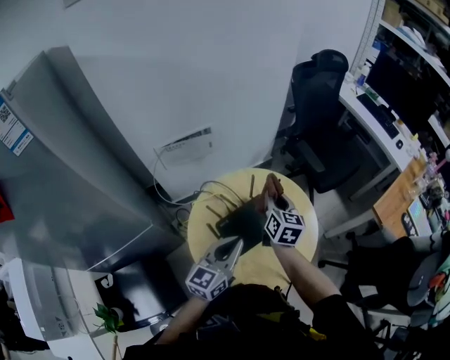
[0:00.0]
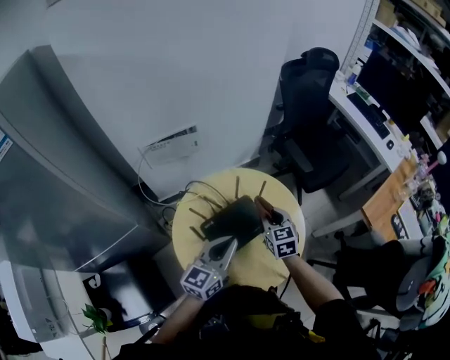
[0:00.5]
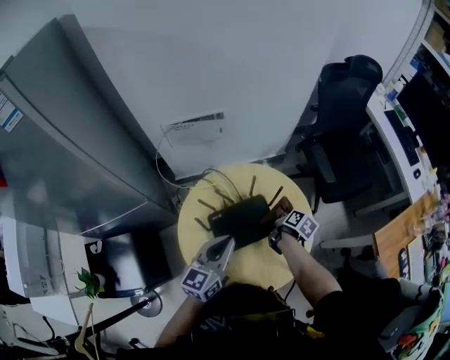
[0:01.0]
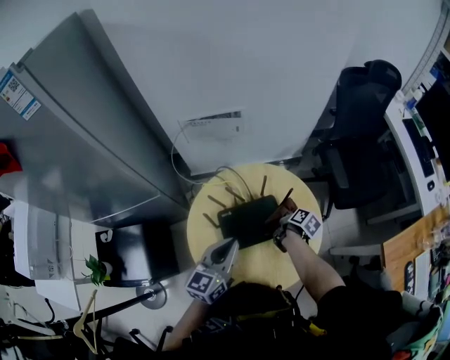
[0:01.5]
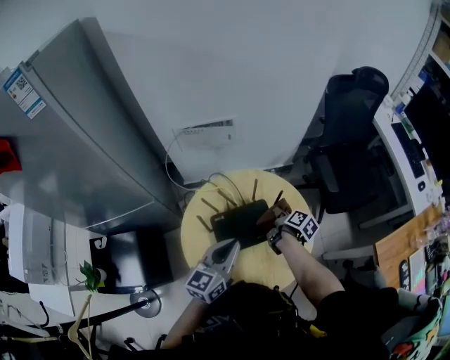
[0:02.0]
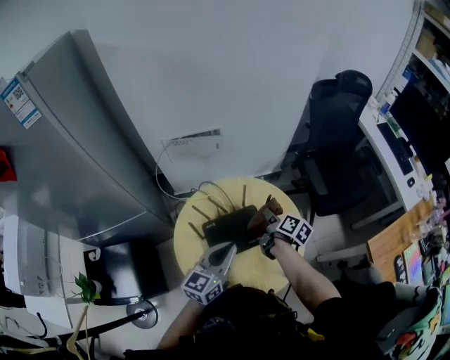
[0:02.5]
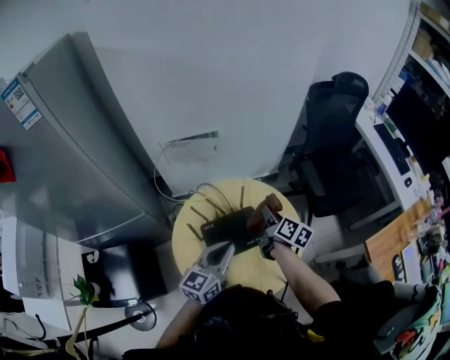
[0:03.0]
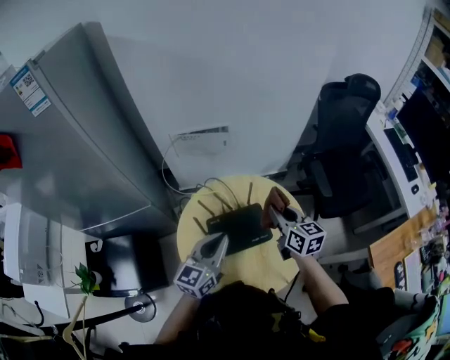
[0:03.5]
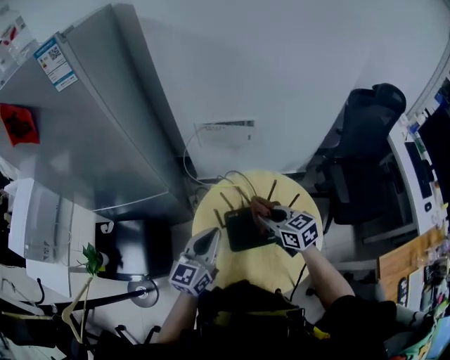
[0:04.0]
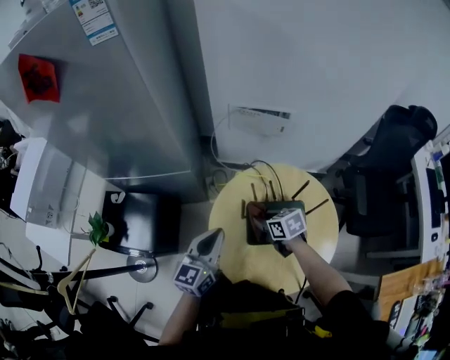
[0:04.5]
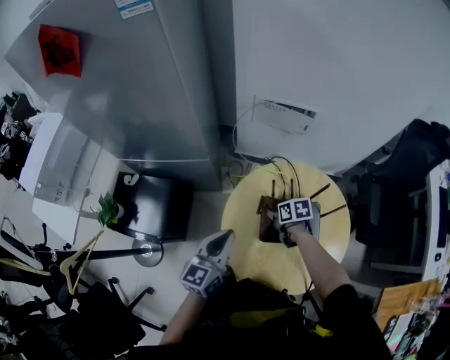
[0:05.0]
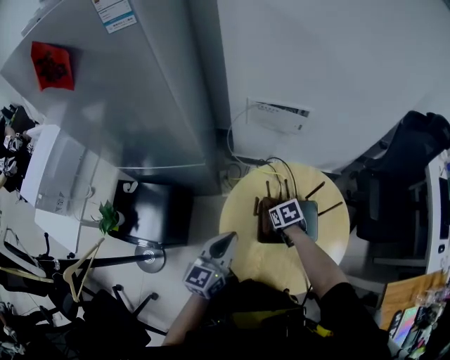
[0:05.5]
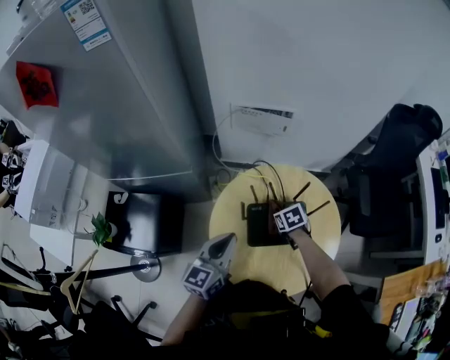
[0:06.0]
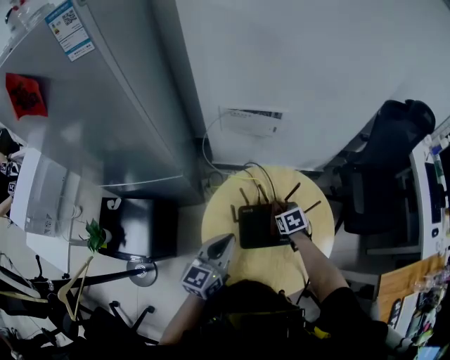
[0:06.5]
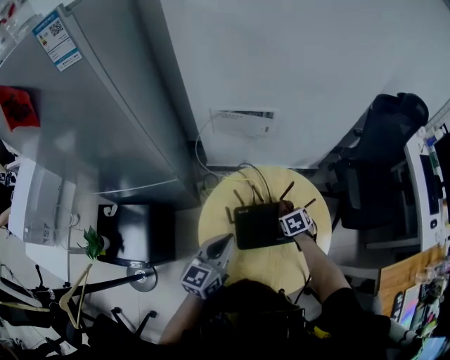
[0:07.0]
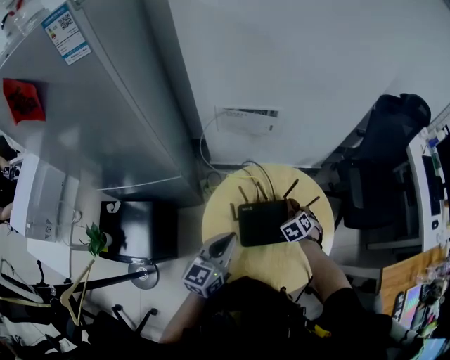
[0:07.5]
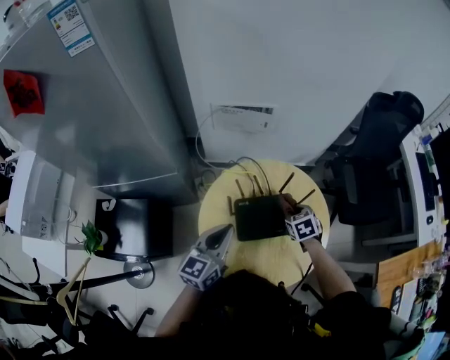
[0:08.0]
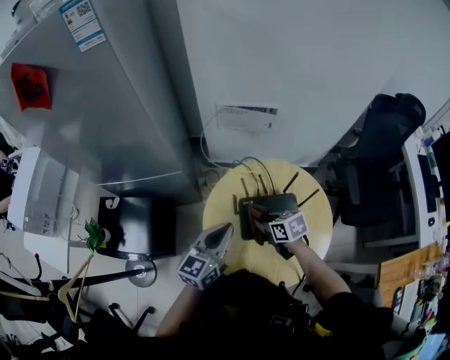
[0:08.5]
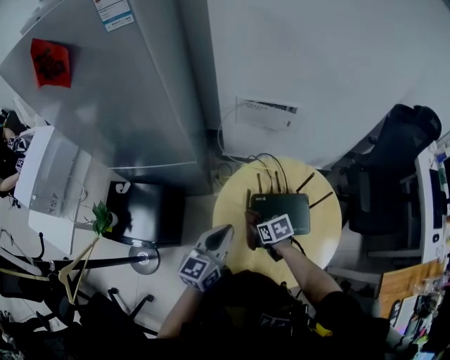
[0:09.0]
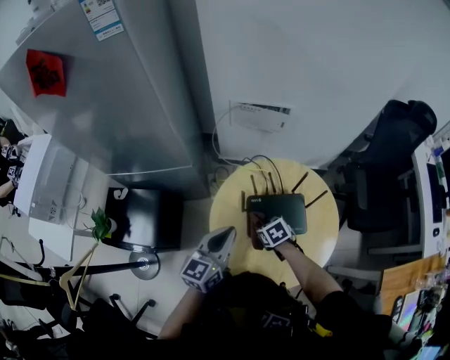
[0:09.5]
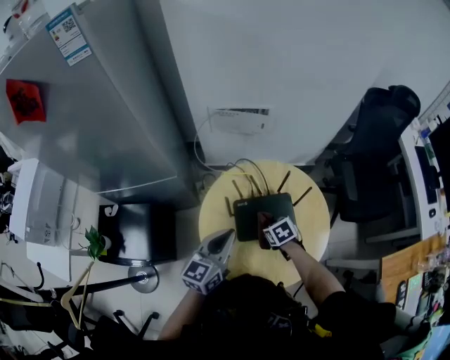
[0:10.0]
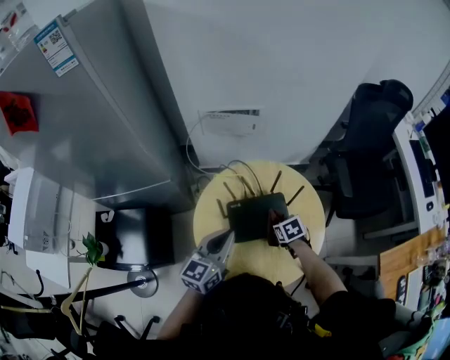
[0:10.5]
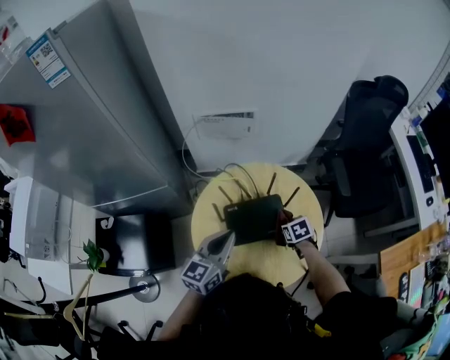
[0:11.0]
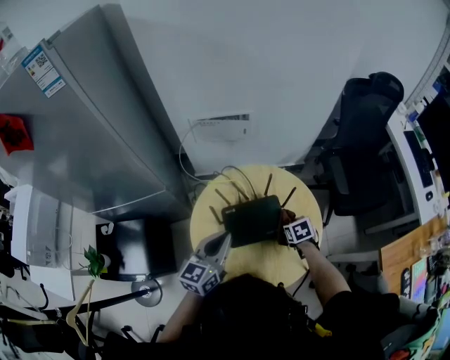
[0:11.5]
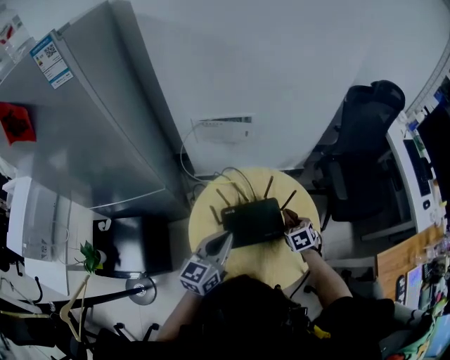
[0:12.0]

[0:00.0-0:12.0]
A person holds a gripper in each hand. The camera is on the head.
0:00.0 to 0:02.0: The right gripper travels downward by approximately 15 cm, and changes its angle by roughly 50 degrees.
0:02.0 to 0:04.0: The left gripper ends up approximately 10 cm from where it was. The right gripper shifts by approximately 20 cm, and twists about 70 degrees counterclockwise, seen from behind.
0:04.0 to 0:06.0: The right gripper moves downward, some 20 cm, and tilts its fingers roughly 40 degrees downward.
0:06.0 to 0:08.0: The right gripper ends up some 10 cm from where it was.
0:10.0 to 0:12.0: The right gripper shifts approximately 15 cm to the right, and changes its angle by about 20 degrees.

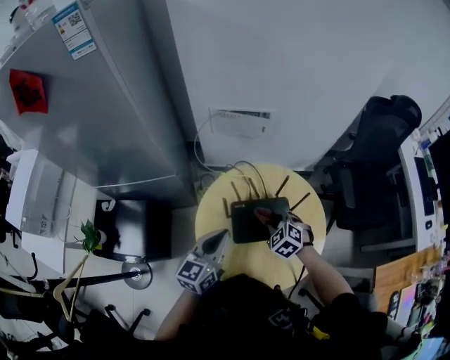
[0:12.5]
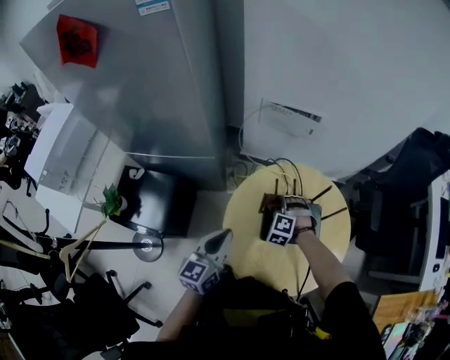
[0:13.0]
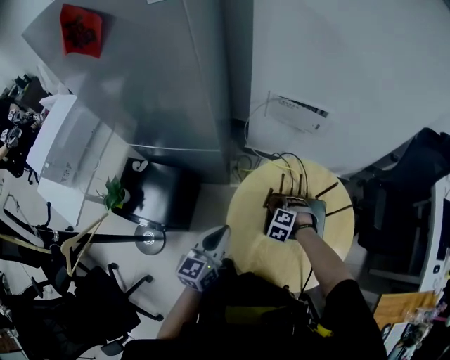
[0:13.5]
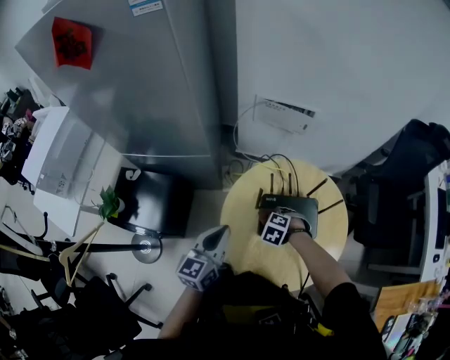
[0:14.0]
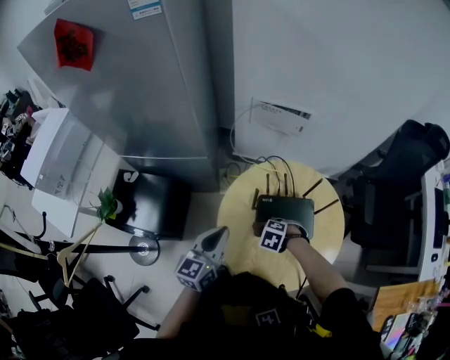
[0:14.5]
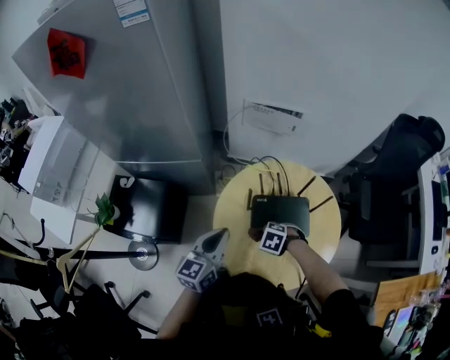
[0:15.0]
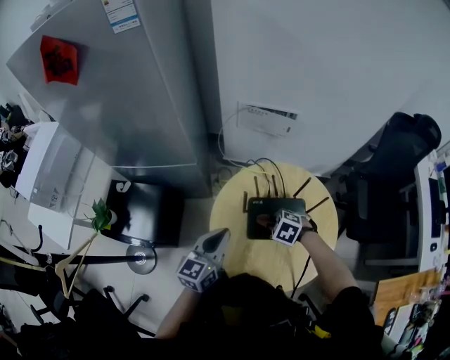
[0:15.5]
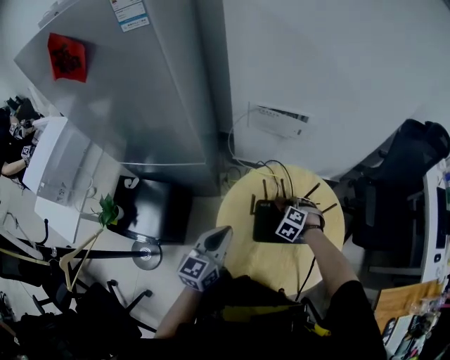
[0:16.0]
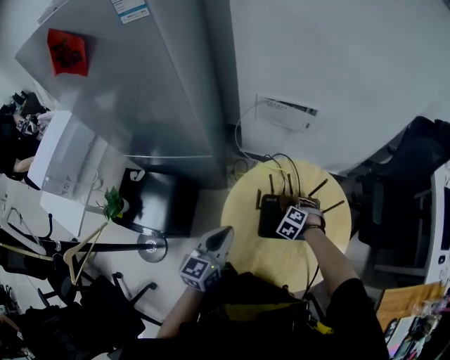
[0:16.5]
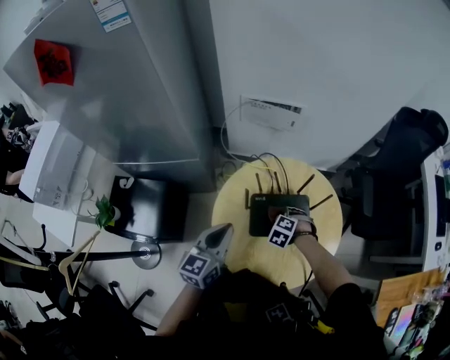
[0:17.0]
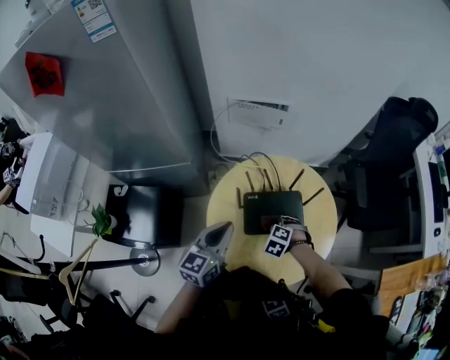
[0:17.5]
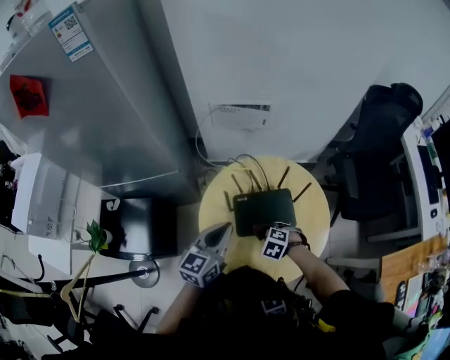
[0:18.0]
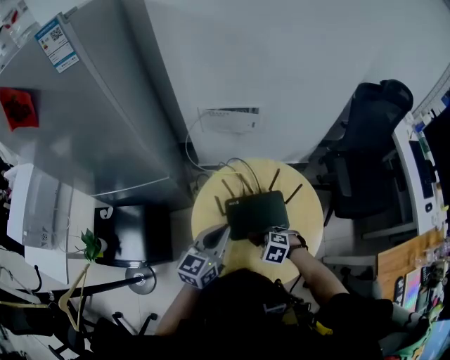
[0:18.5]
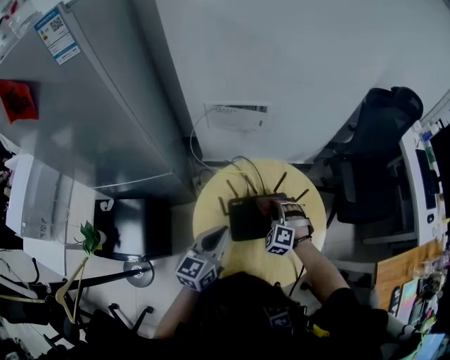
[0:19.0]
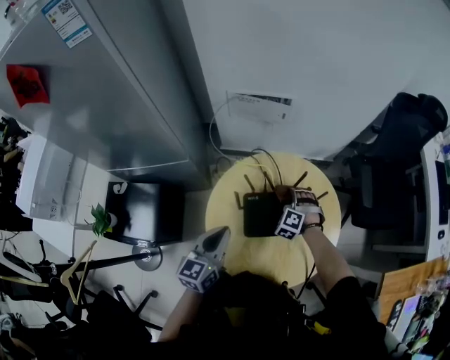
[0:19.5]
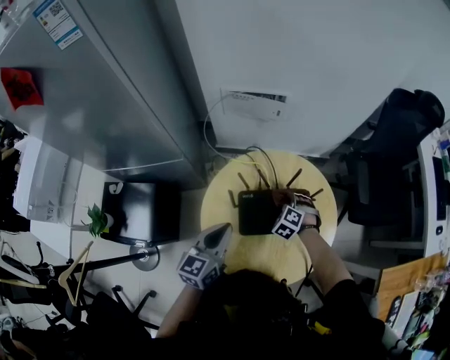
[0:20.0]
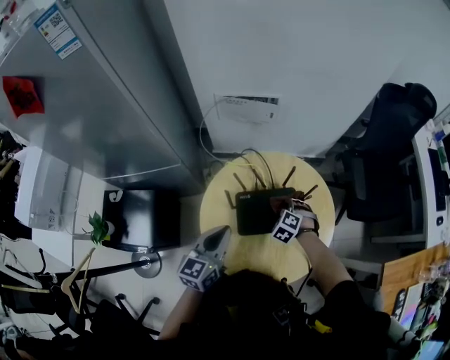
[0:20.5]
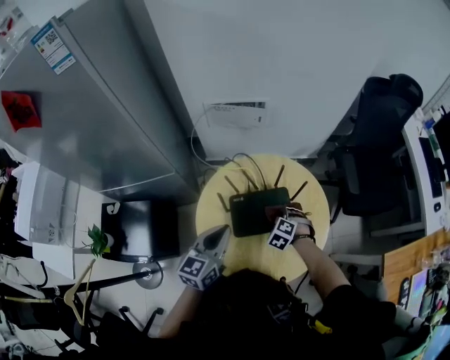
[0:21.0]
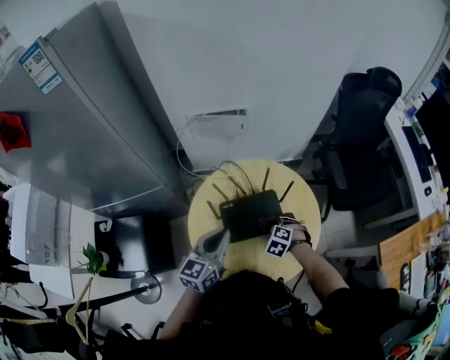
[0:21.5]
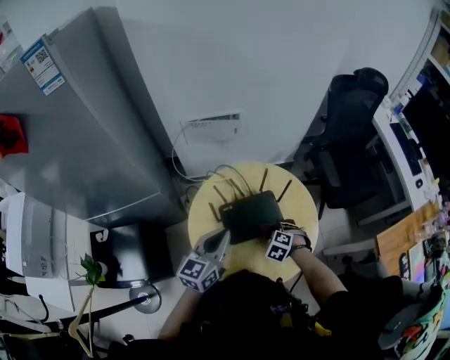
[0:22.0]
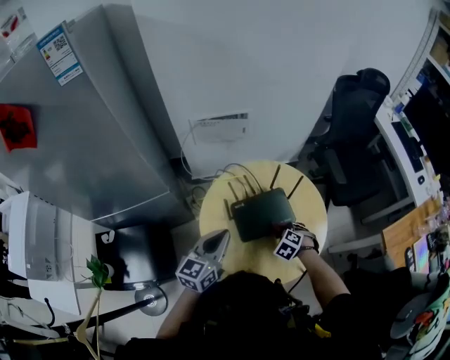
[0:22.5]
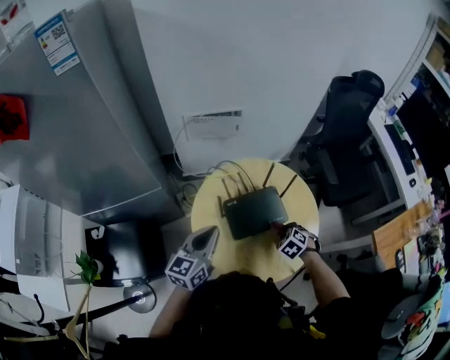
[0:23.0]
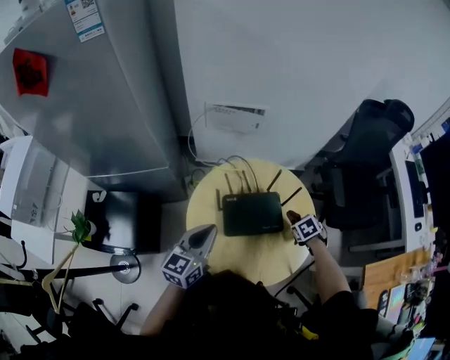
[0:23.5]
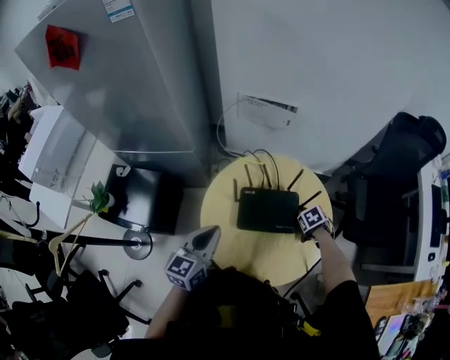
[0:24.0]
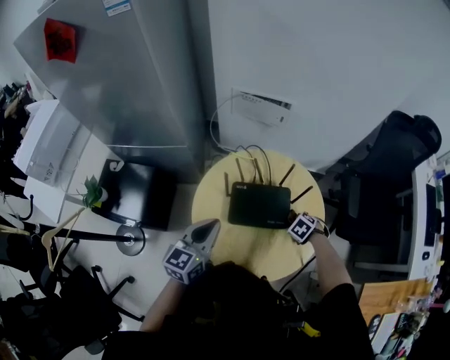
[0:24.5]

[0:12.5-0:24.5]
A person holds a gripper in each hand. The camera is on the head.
0:12.5 to 0:14.5: The left gripper ends up about 10 cm from where it was. The right gripper ends up approximately 15 cm from where it was, and angles its fingers downward, by about 30 degrees.
0:14.5 to 0:16.5: The right gripper shifts by roughly 15 cm, and rotates approximately 20 degrees.
0:16.5 to 0:18.5: The left gripper moves roughly 10 cm, while the right gripper ends up about 15 cm from where it was, and rotates about 20 degrees.
0:18.5 to 0:20.5: The right gripper shifts by some 15 cm, and swivels about 20 degrees.
0:20.5 to 0:22.5: The right gripper shifts roughly 10 cm backward and to the right.
0:22.5 to 0:24.5: The left gripper moves about 5 cm, and rotates approximately 20 degrees. Meanwhile the right gripper moves roughly 10 cm, and rotates about 20 degrees.

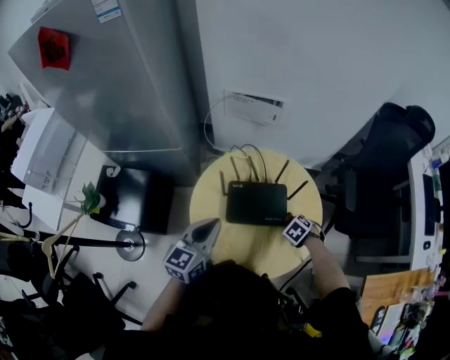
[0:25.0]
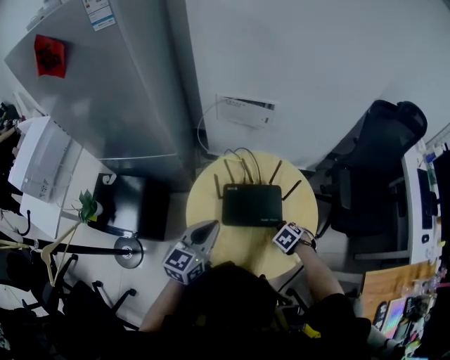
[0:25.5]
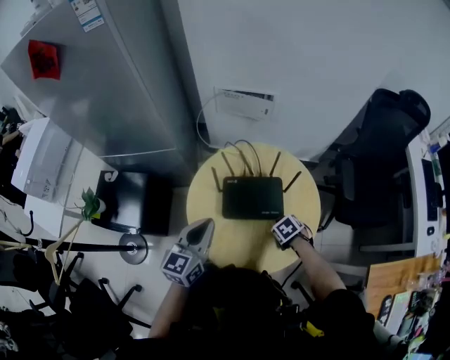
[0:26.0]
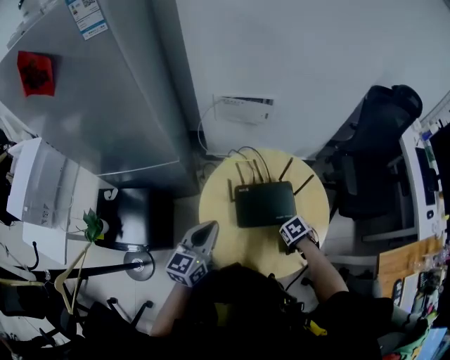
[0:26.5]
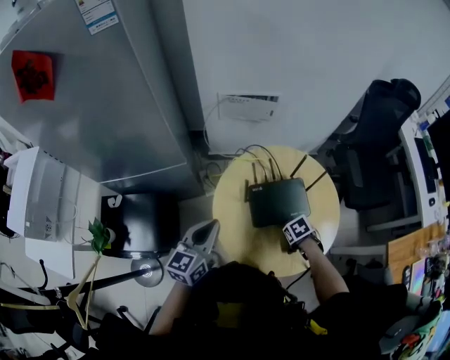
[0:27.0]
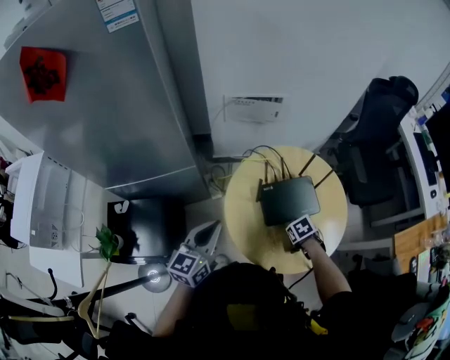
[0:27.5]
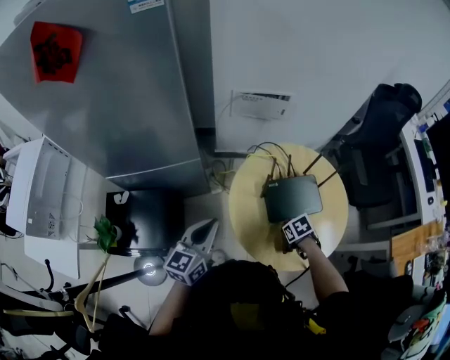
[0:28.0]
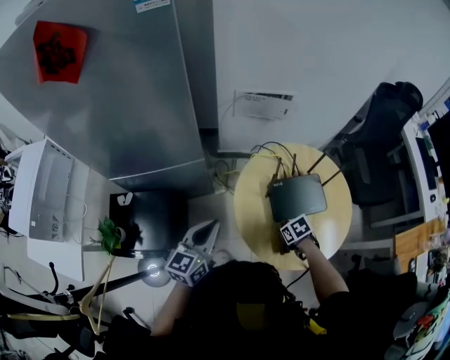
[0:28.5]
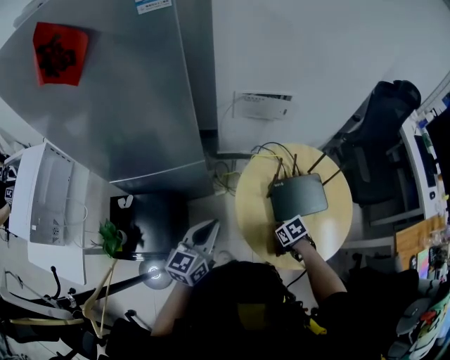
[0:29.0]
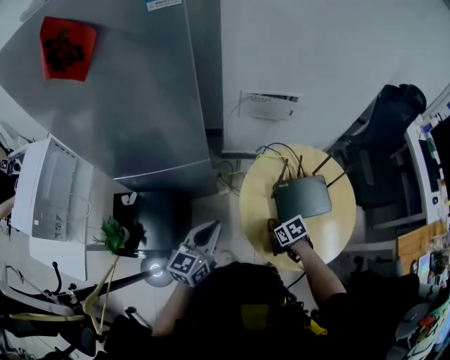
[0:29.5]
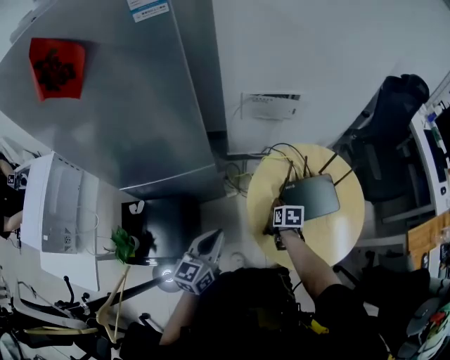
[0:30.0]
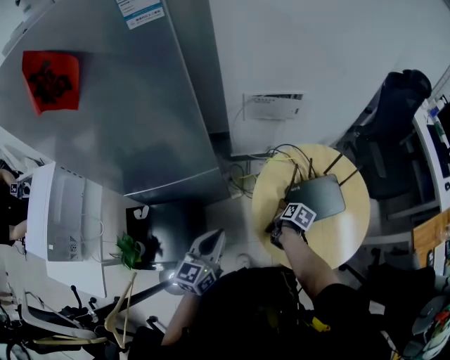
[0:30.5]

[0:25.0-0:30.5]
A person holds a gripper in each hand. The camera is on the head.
0:25.0 to 0:27.0: The right gripper ends up roughly 10 cm from where it was, and swivels approximately 40 degrees, while the left gripper shifts by roughly 10 cm.
0:27.0 to 0:28.5: The right gripper ends up about 10 cm from where it was, while the left gripper changes place by some 10 cm.
0:28.5 to 0:30.5: The right gripper moves about 15 cm, and twists approximately 60 degrees clockwise, seen from behind.
